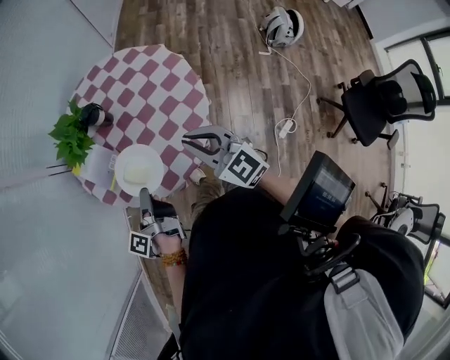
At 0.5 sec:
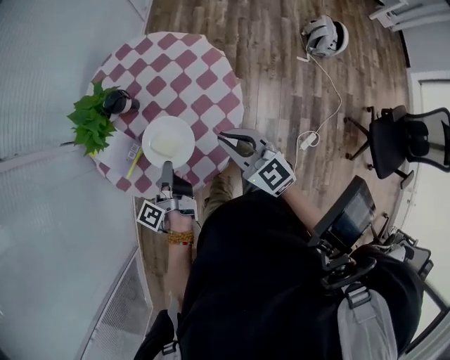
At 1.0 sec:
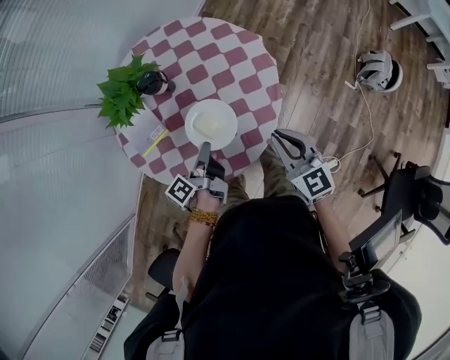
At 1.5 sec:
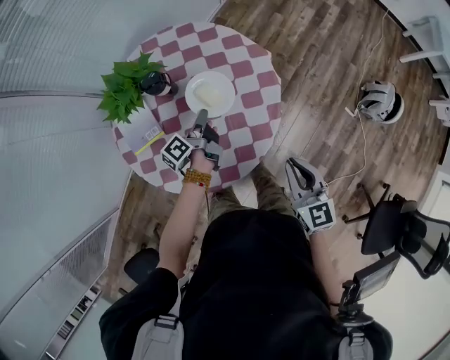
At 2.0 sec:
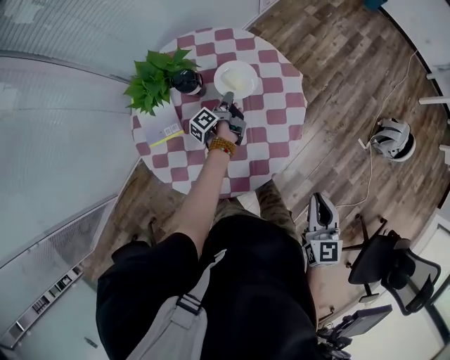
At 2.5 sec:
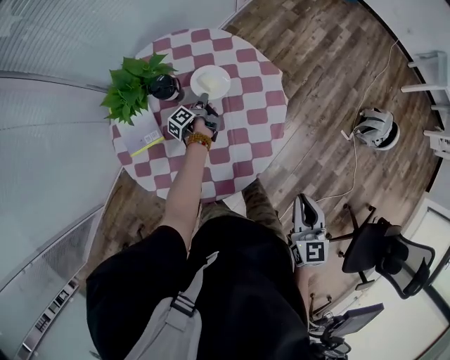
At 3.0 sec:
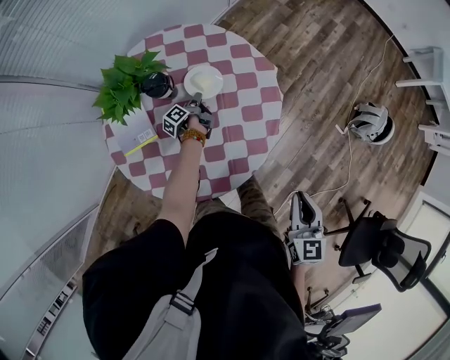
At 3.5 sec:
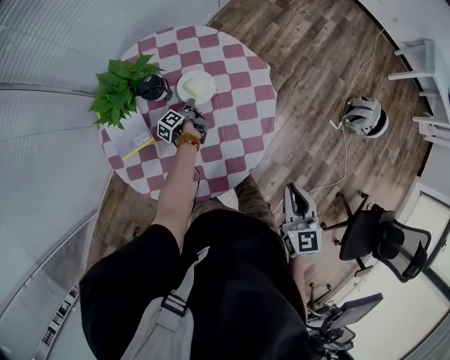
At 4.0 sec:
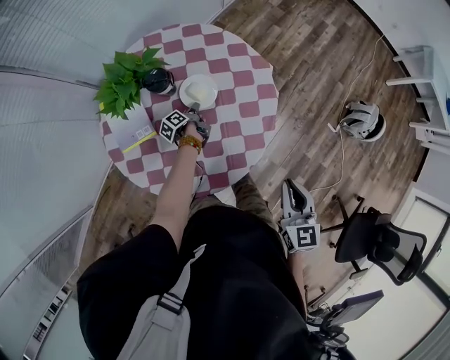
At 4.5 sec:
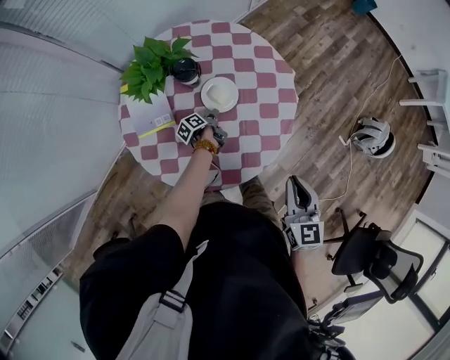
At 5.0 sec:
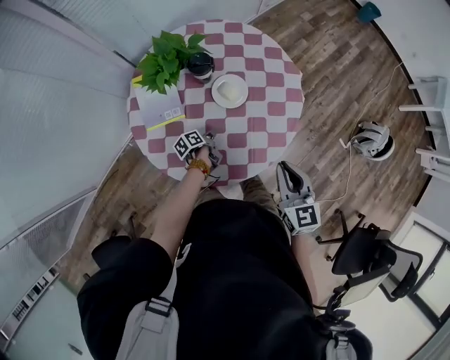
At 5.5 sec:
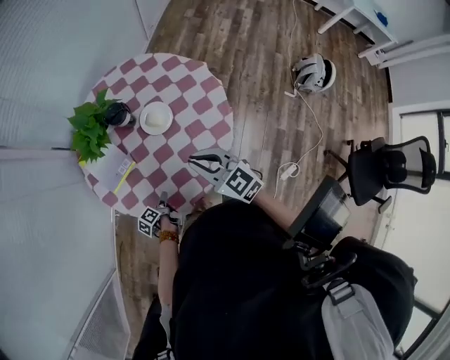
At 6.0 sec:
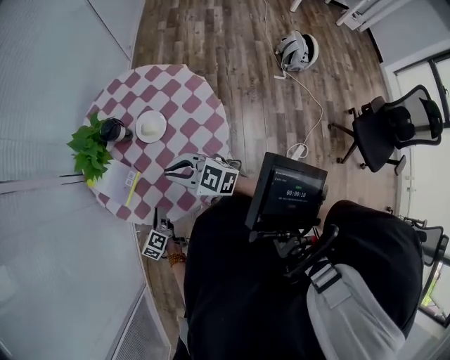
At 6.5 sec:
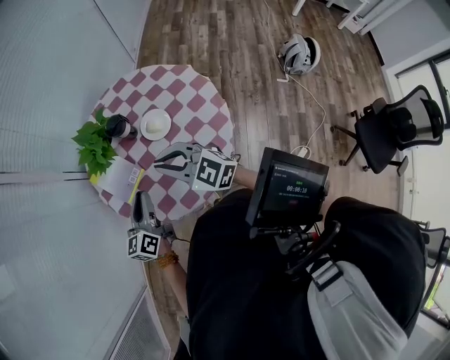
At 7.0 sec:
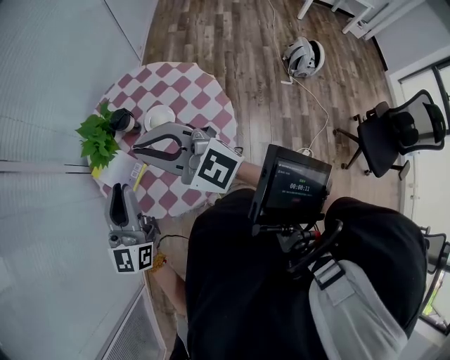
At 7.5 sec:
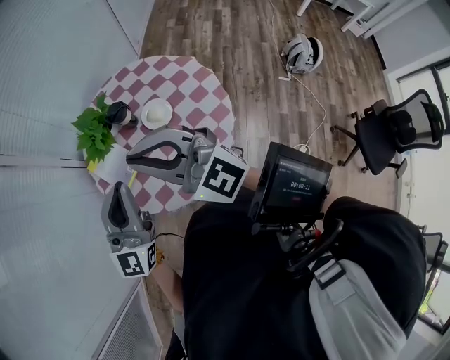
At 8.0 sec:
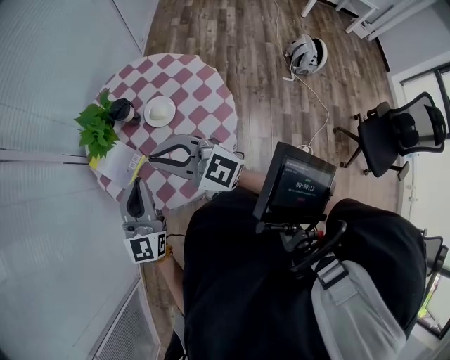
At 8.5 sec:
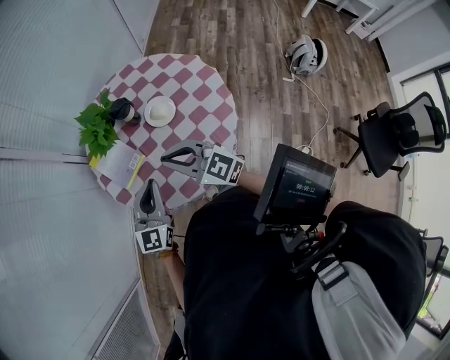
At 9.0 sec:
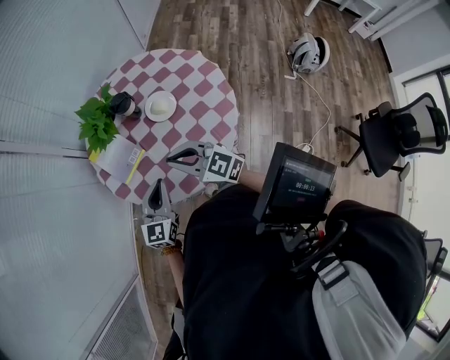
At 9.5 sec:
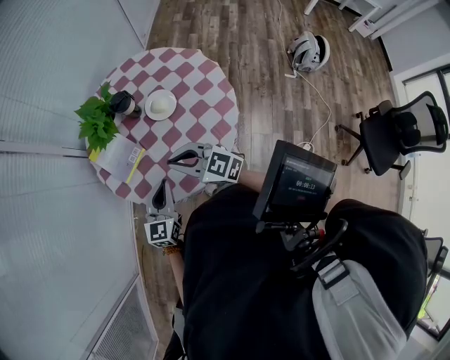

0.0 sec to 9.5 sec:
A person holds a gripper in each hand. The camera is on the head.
0.0 sec to 2.0 sec: The right gripper changes place by some 25 cm.
4.0 sec to 5.5 sec: The right gripper ends up approximately 20 cm from where it was, and rotates some 30 degrees.
5.5 sec to 7.5 sec: The right gripper moves upward, roughly 25 cm, and tips its fingers upward by roughly 30 degrees.
7.5 sec to 9.5 sec: The right gripper heads downward, covering approximately 25 cm, and rotates roughly 30 degrees.

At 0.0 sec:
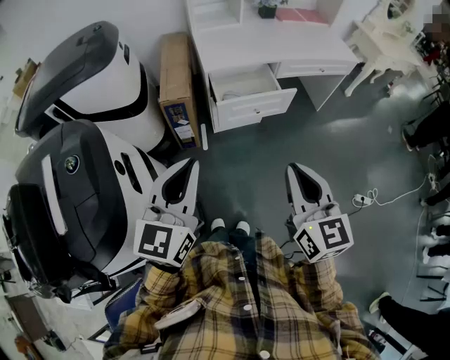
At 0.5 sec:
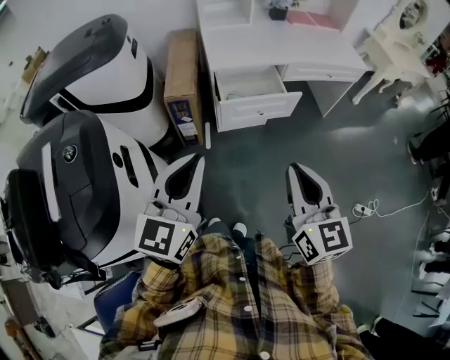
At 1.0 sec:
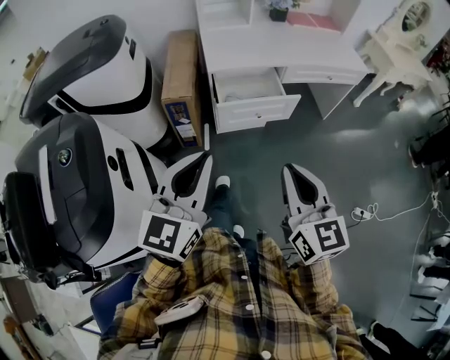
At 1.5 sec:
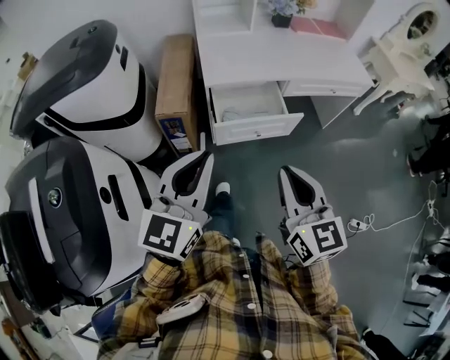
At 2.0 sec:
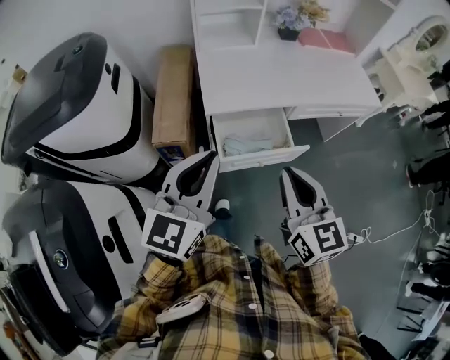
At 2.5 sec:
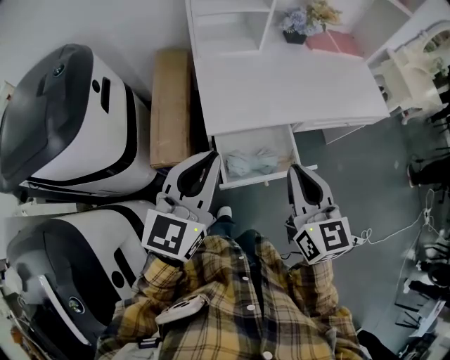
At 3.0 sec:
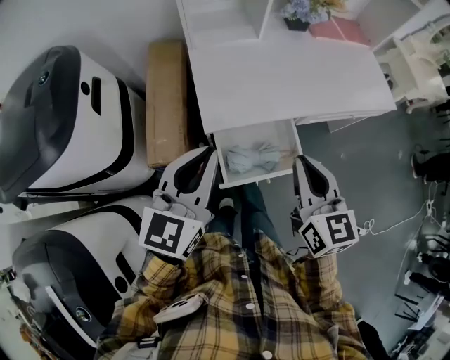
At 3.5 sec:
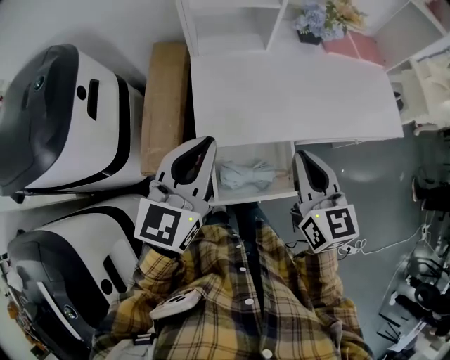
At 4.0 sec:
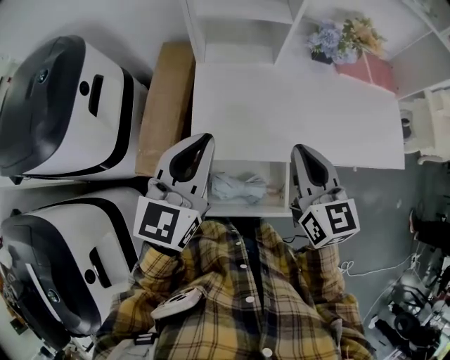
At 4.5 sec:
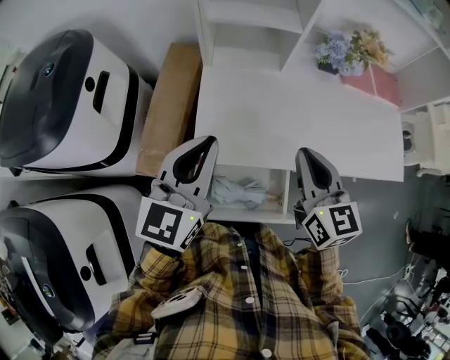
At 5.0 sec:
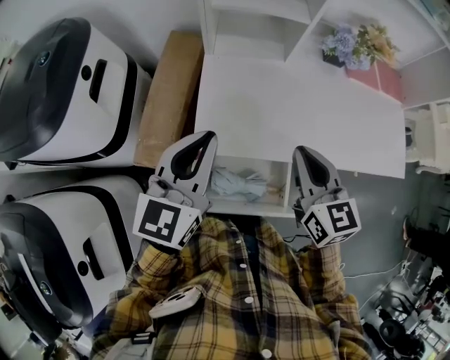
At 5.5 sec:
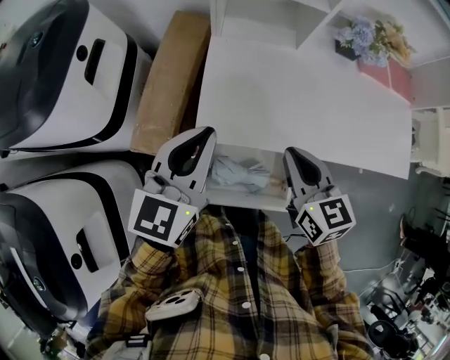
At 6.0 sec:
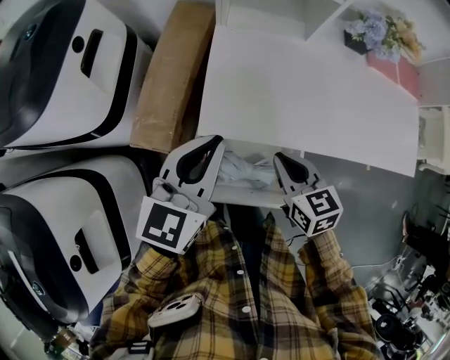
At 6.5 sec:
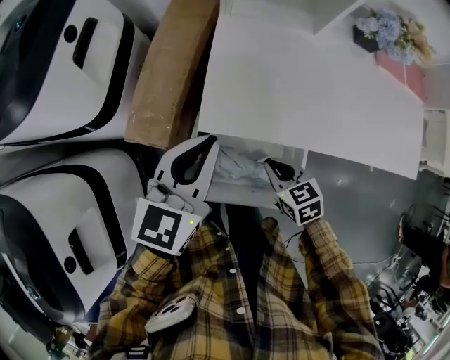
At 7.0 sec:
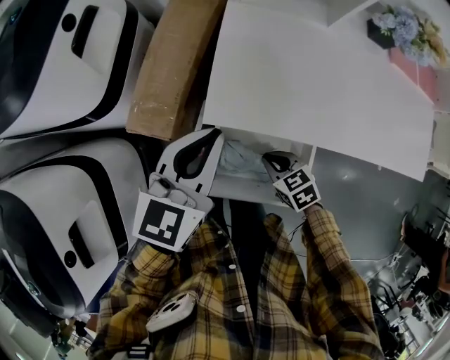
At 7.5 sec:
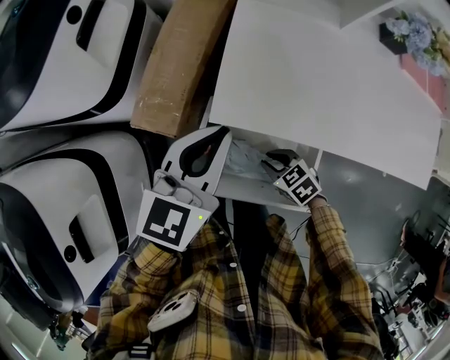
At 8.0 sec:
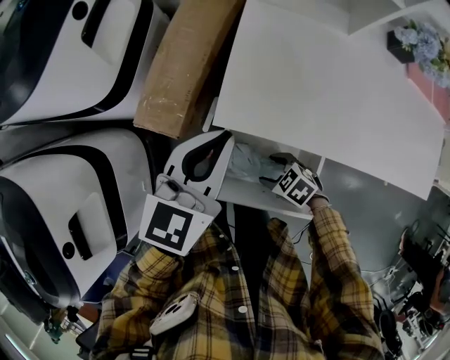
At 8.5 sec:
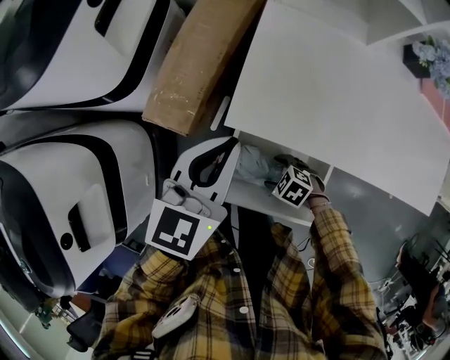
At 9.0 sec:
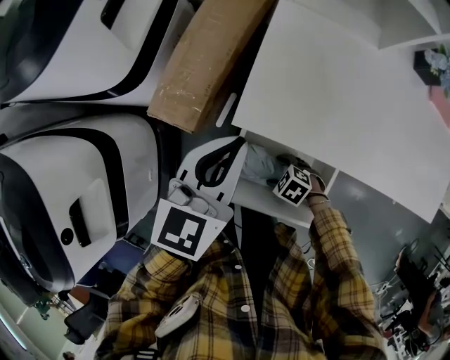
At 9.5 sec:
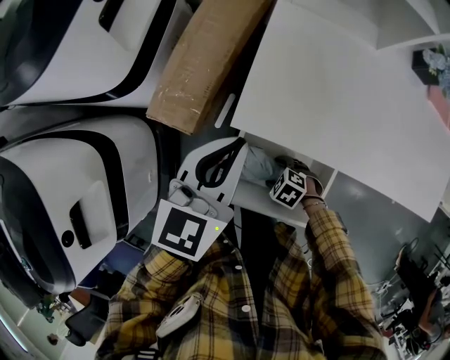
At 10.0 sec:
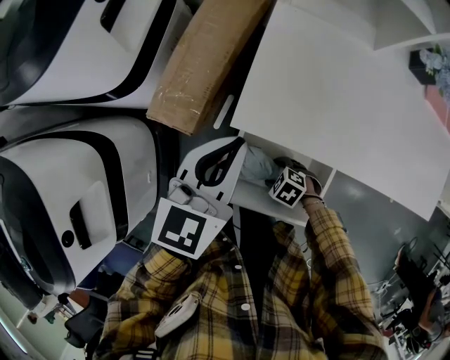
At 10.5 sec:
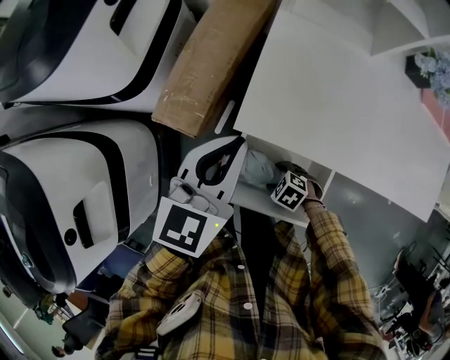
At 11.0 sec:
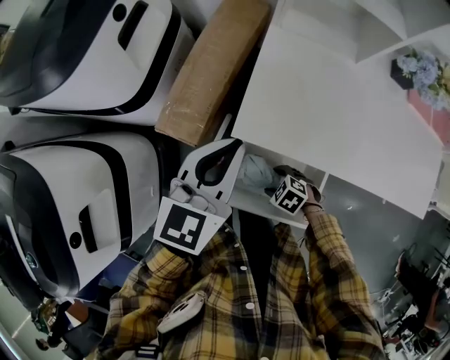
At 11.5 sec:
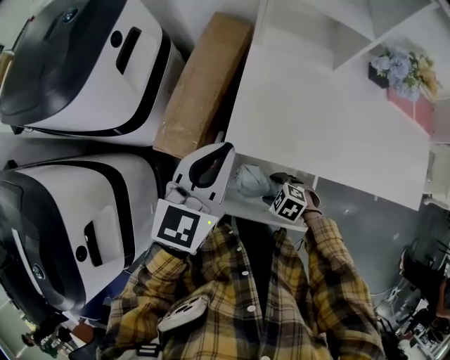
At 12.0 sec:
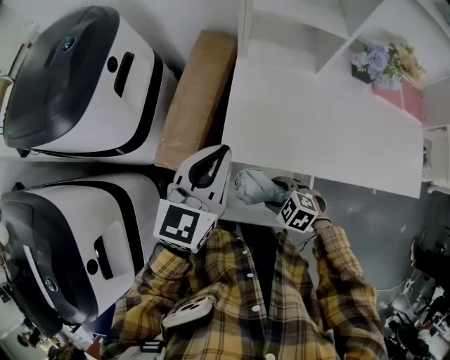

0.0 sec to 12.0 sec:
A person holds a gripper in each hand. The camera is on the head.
0.0 sec to 2.0 sec: Both grippers move forward, roughly 25 cm.
2.0 sec to 4.0 sec: Both grippers move forward, some 30 cm.
4.0 sec to 6.0 sec: The left gripper goes some 10 cm downward, while the right gripper goes some 15 cm downward and to the left, and turns by roughly 30 degrees.
6.0 sec to 8.0 sec: The right gripper heads downward, covering about 20 cm, turns by approximately 60 degrees, and opens up; the left gripper shifts some 5 cm downward.
8.0 sec to 10.0 sec: The right gripper moves downward, about 5 cm.
10.0 sec to 12.0 sec: The left gripper goes approximately 10 cm upward; the right gripper moves upward, approximately 15 cm.

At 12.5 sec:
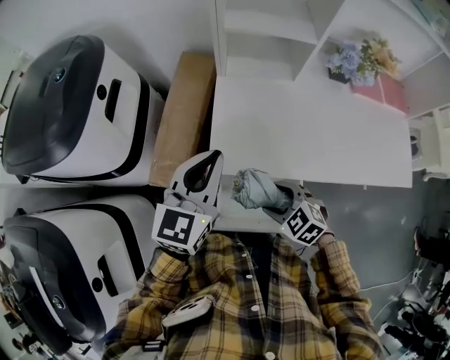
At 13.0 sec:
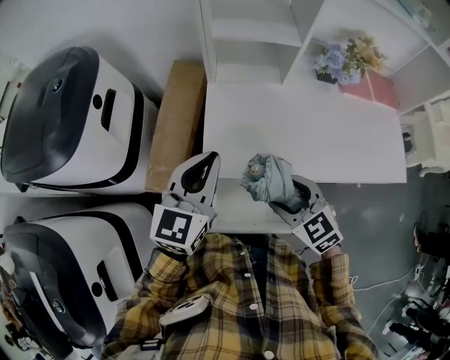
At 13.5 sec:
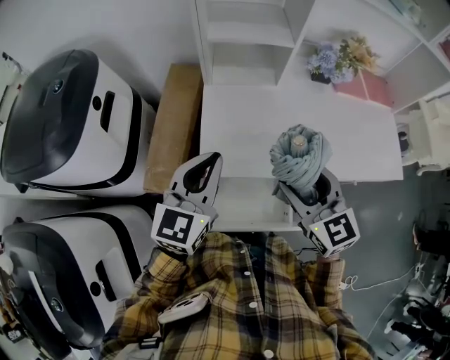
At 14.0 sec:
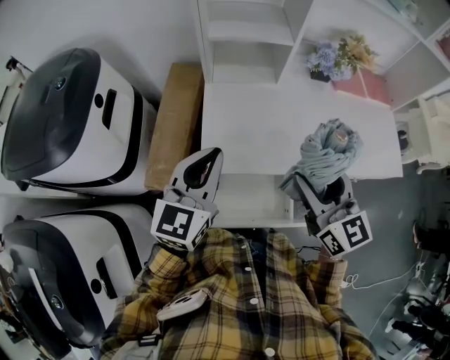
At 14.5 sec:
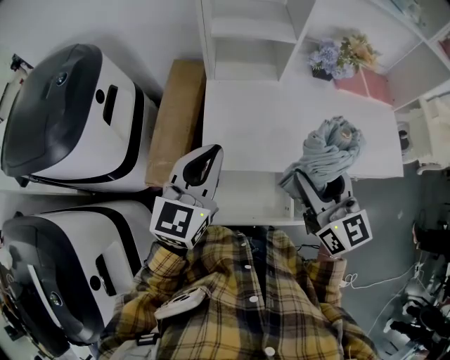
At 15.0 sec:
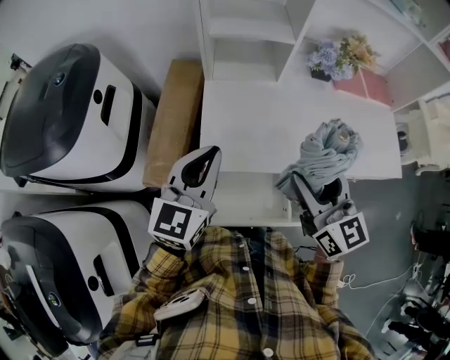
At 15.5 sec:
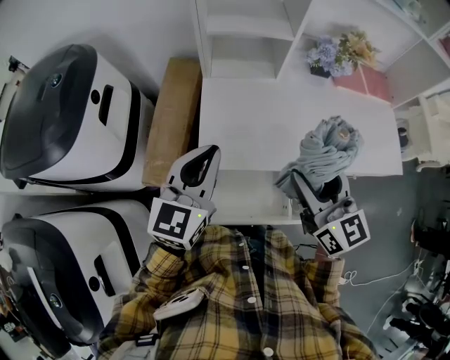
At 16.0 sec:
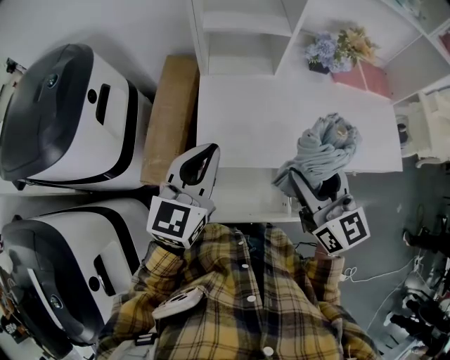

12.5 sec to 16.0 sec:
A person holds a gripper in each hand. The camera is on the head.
12.5 sec to 14.5 sec: The right gripper shifts some 25 cm upward, and tips its fingers upward by roughly 50 degrees.
14.5 sec to 16.0 sec: Both grippers stay about where they are.

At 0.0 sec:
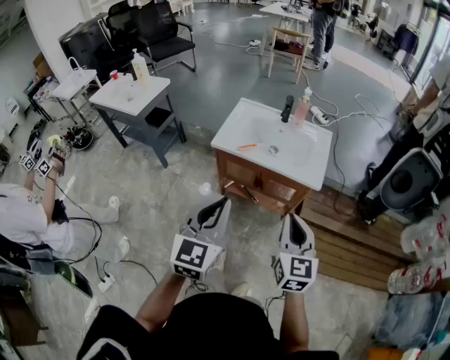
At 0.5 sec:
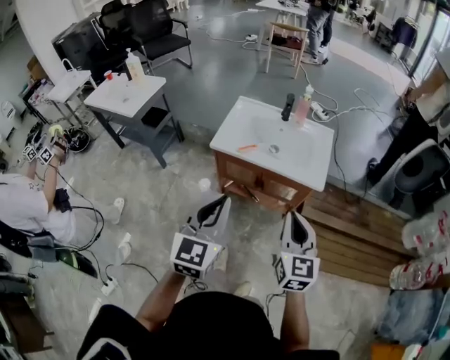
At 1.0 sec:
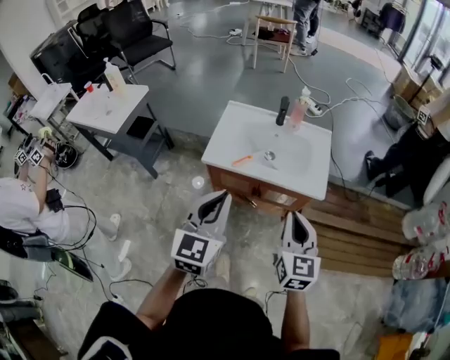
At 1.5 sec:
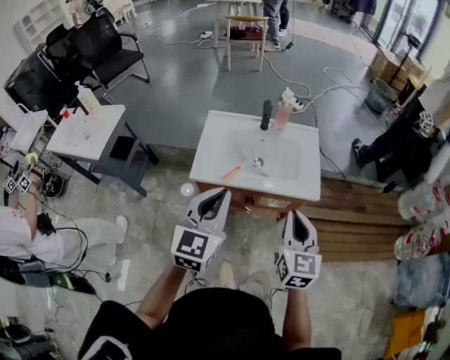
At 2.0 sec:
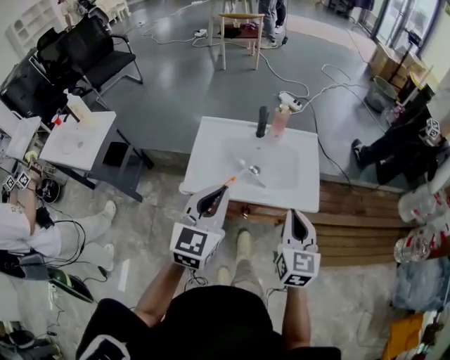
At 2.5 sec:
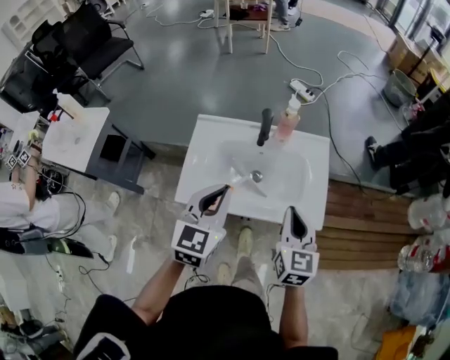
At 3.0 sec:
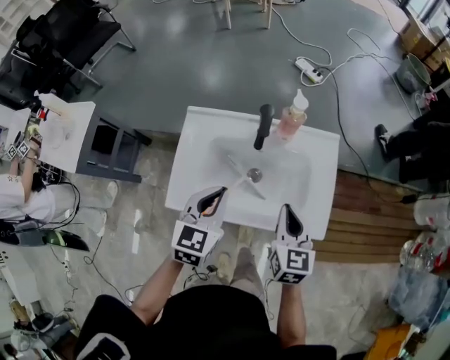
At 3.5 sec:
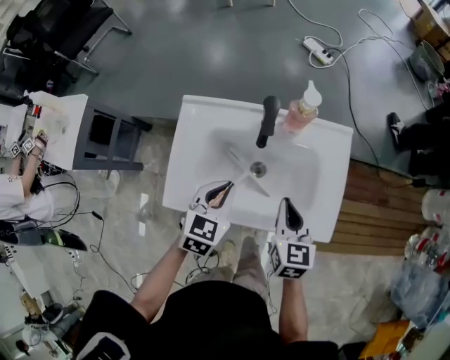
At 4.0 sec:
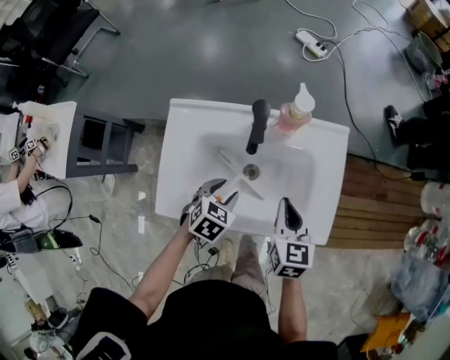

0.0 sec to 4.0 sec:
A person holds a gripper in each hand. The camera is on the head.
0.0 sec to 2.0 sec: The grippers both shift forward by some 30 cm.
2.0 sec to 4.0 sec: The left gripper moves downward and forward, about 40 cm, tilts its fingers roughly 50 degrees downward, and opens; the right gripper is displaced forward and downward by some 35 cm, and swivels roughly 20 degrees.
